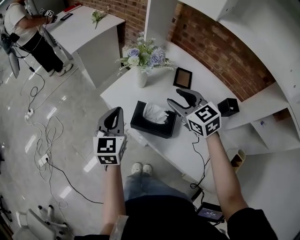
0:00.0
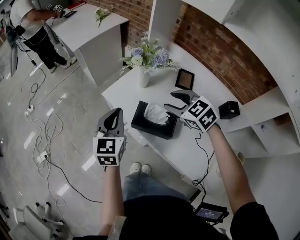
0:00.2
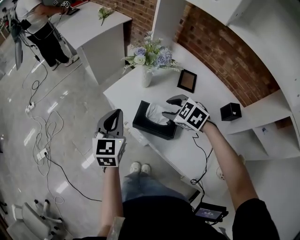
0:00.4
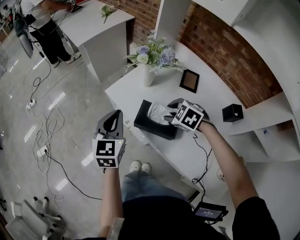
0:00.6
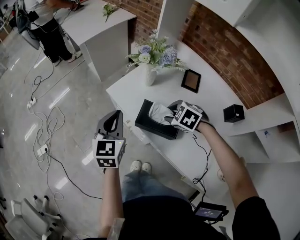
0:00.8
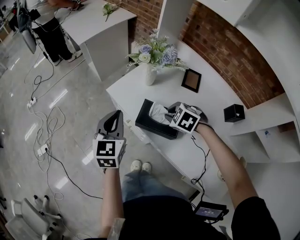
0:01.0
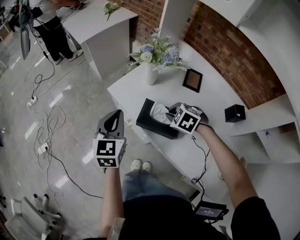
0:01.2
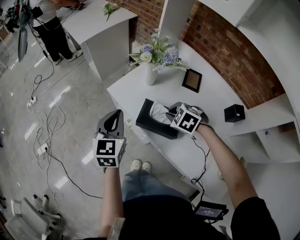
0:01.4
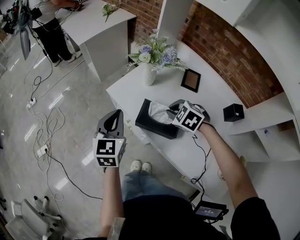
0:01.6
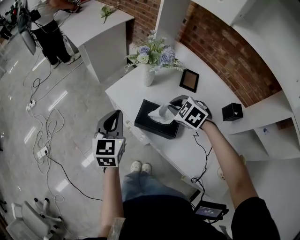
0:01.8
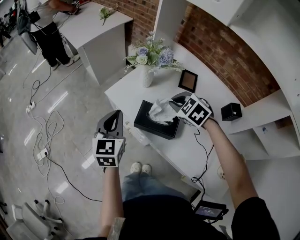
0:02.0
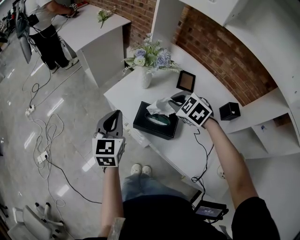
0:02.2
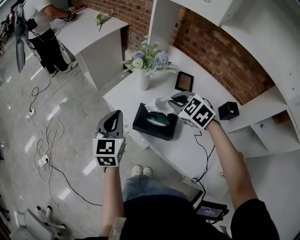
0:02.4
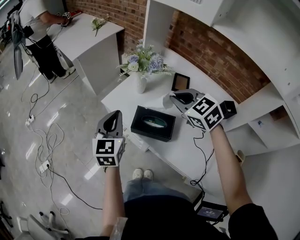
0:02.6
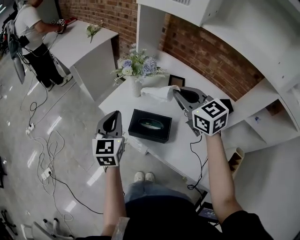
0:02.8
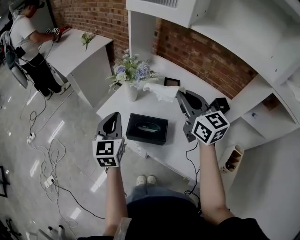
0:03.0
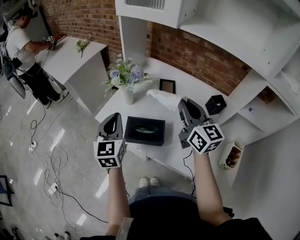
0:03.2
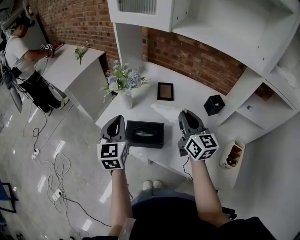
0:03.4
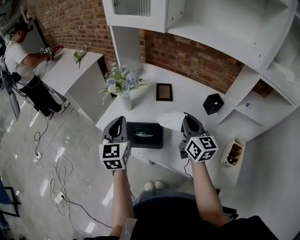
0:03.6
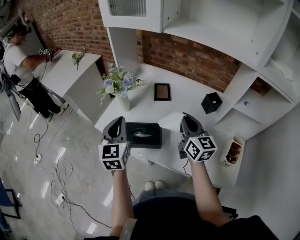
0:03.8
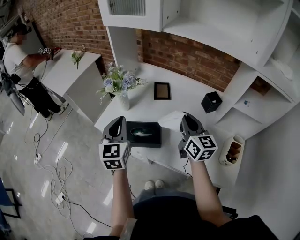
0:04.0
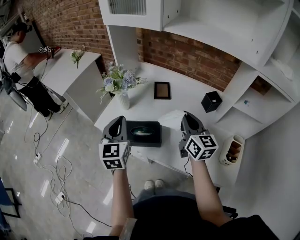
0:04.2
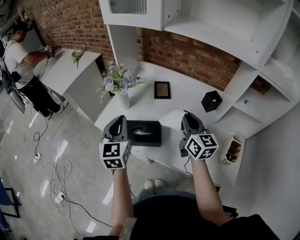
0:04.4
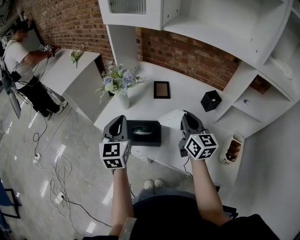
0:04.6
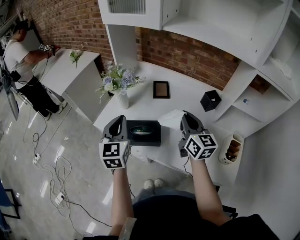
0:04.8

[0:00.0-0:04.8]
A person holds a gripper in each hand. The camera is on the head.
0:00.0 to 0:01.6: The right gripper is displaced downward by some 15 cm, tips its fingers downward by roughly 40 degrees, and closes up.
0:01.6 to 0:03.2: The left gripper travels to the right and upward by roughly 10 cm; the right gripper travels upward and to the right by about 25 cm, and points its fingers some 70 degrees further upward.
0:03.2 to 0:04.8: The right gripper moves downward, approximately 5 cm.

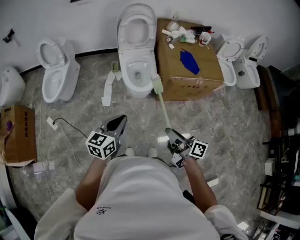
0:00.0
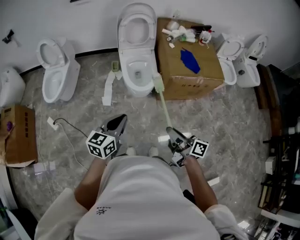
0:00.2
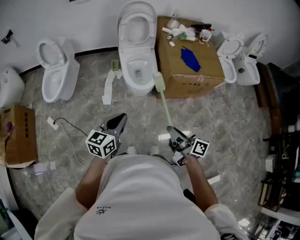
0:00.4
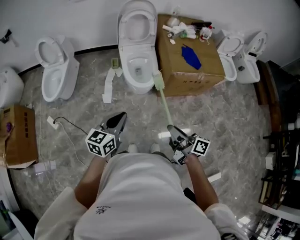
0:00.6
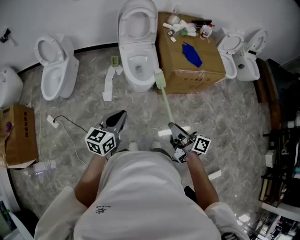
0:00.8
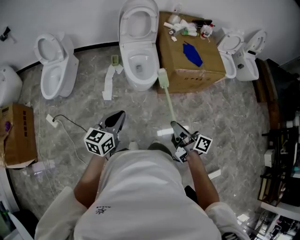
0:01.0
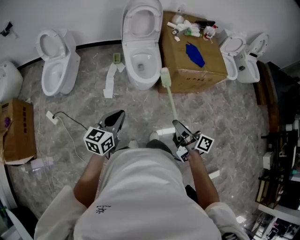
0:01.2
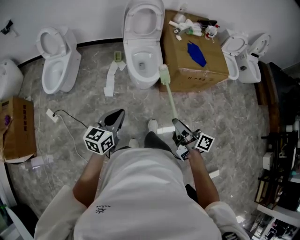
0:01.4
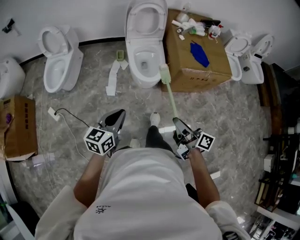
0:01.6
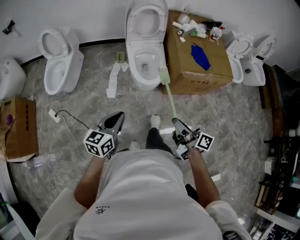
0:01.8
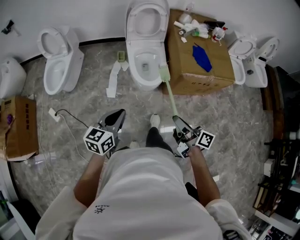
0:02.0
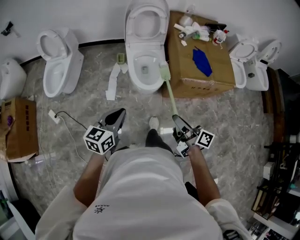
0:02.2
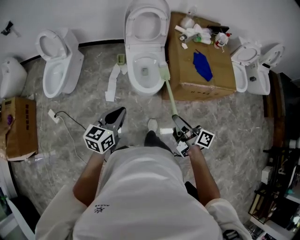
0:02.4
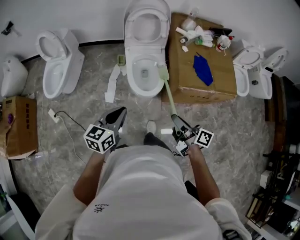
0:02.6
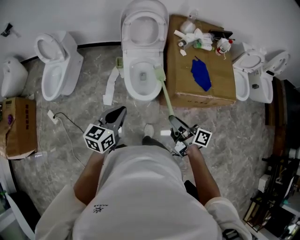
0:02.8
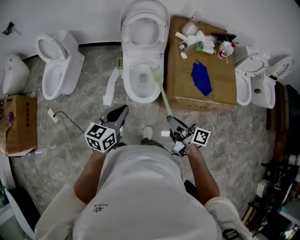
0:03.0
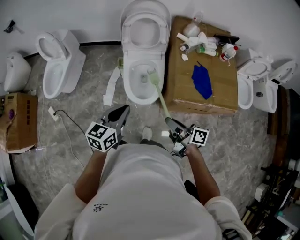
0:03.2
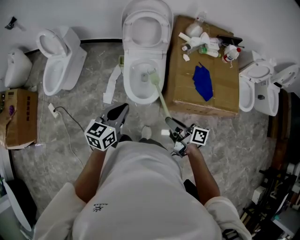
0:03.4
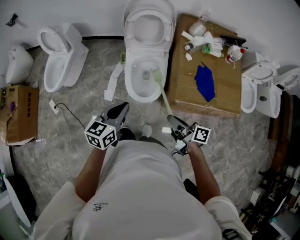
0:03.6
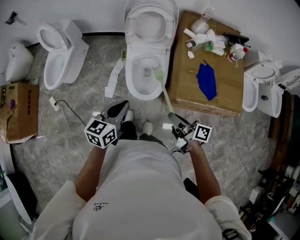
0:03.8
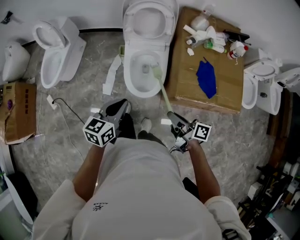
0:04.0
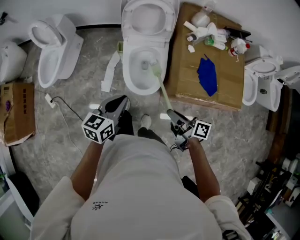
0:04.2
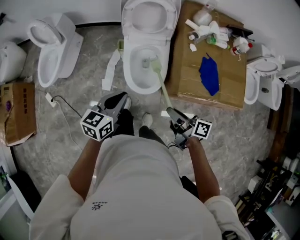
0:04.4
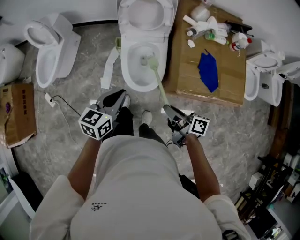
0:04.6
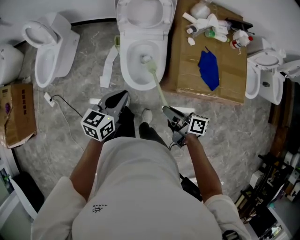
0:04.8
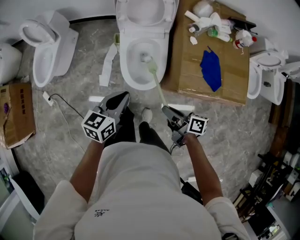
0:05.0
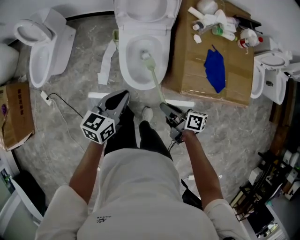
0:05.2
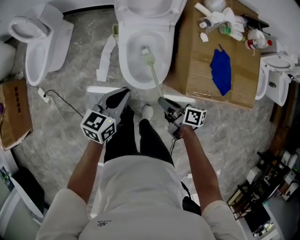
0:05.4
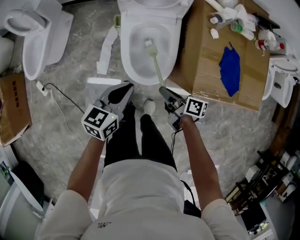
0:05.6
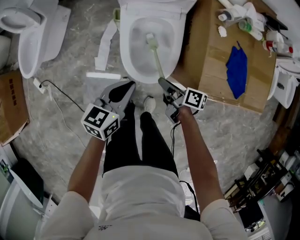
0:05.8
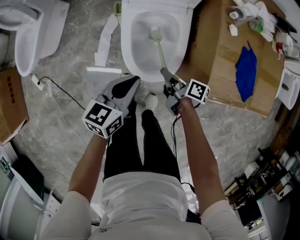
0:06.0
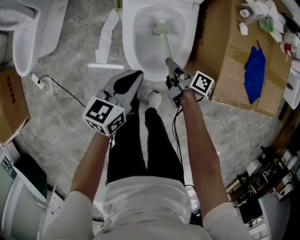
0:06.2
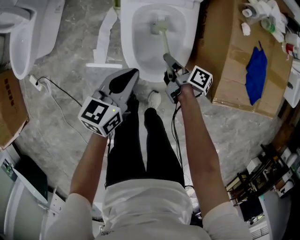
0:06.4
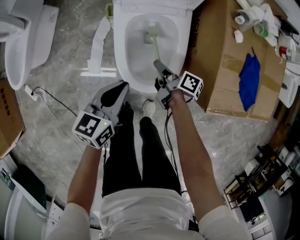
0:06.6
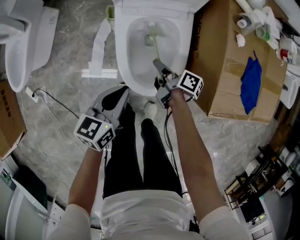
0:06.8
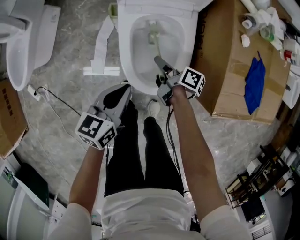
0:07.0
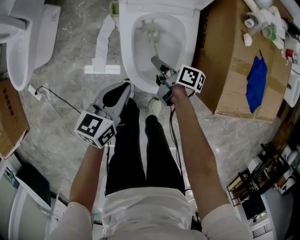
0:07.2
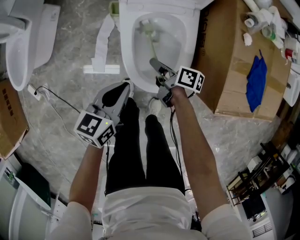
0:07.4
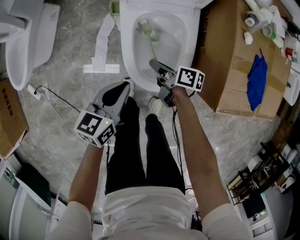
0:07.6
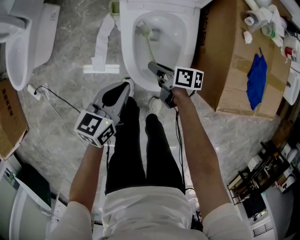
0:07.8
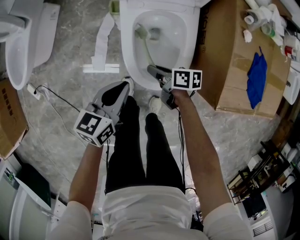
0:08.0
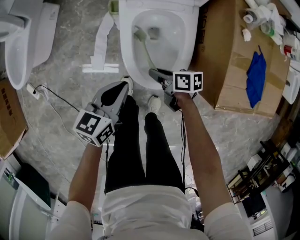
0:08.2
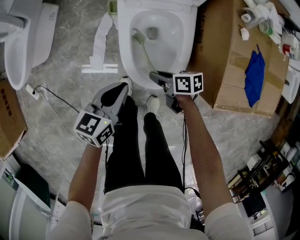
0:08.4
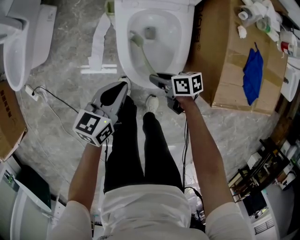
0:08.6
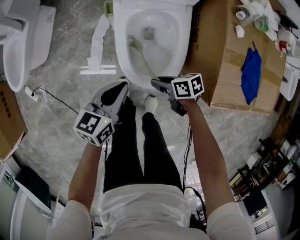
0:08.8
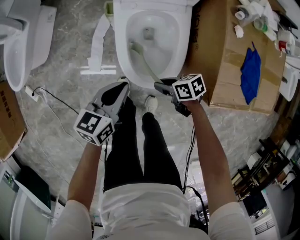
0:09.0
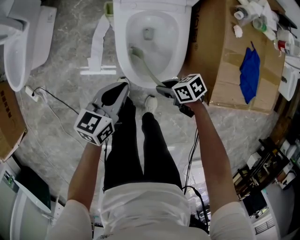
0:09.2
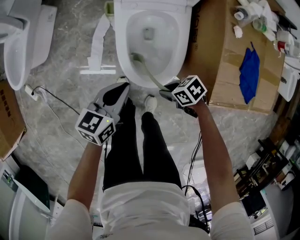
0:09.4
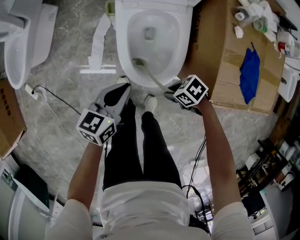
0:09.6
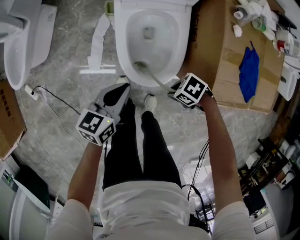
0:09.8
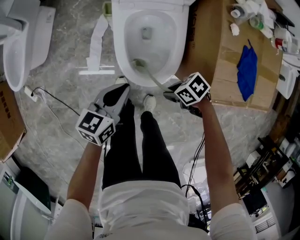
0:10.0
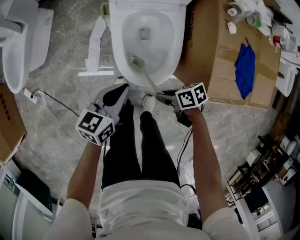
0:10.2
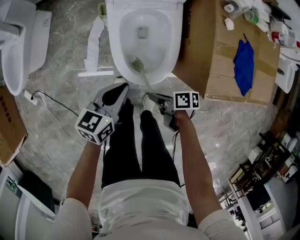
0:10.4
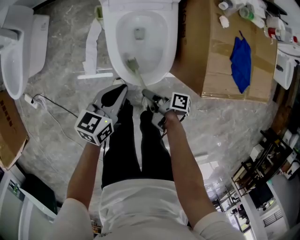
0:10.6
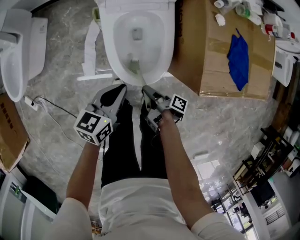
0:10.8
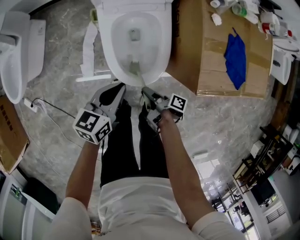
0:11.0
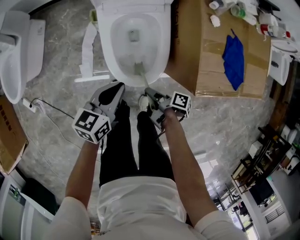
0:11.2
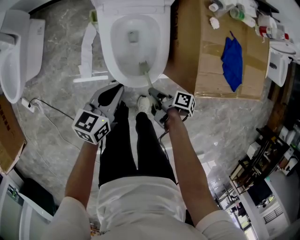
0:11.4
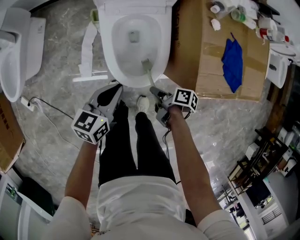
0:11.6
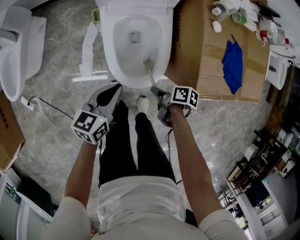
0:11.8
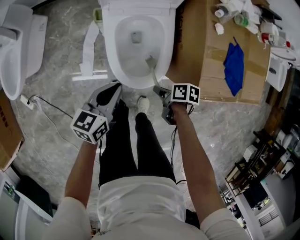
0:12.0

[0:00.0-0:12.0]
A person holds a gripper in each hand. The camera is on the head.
0:00.0 to 0:01.6: The left gripper shifts by roughly 10 cm.
0:01.6 to 0:03.0: The left gripper ends up about 30 cm from where it was.
0:03.0 to 0:04.4: The left gripper moves approximately 10 cm.
0:04.4 to 0:06.0: The left gripper goes approximately 20 cm downward.
0:06.0 to 0:07.6: The left gripper moves about 10 cm.

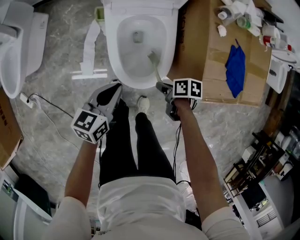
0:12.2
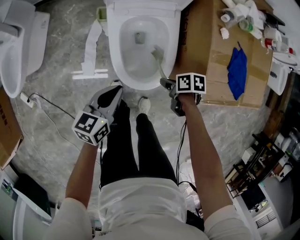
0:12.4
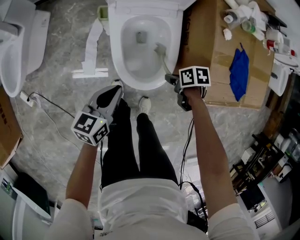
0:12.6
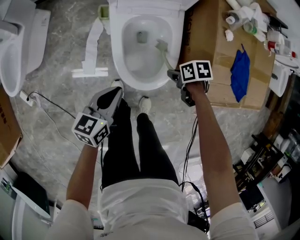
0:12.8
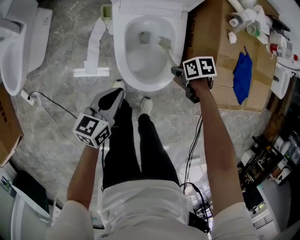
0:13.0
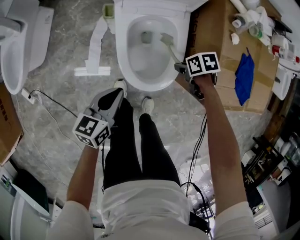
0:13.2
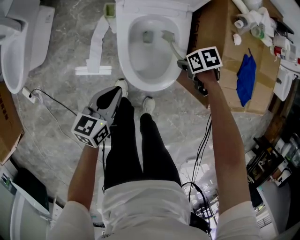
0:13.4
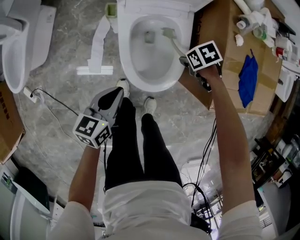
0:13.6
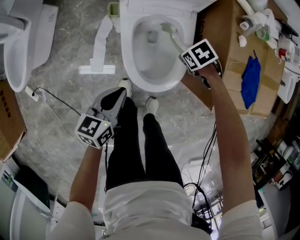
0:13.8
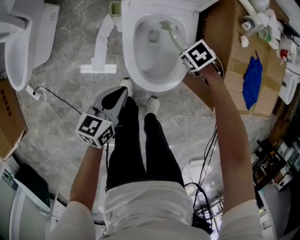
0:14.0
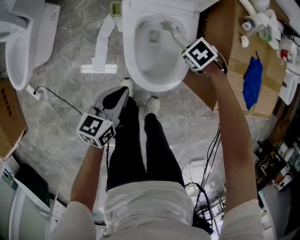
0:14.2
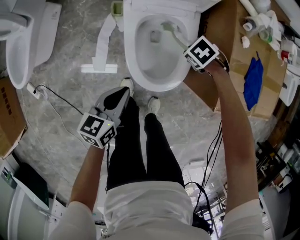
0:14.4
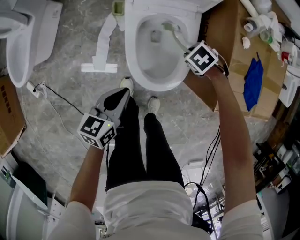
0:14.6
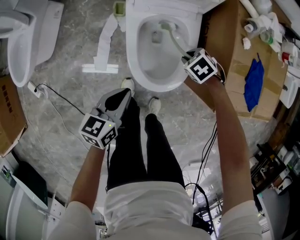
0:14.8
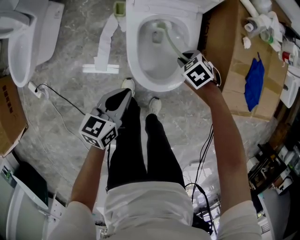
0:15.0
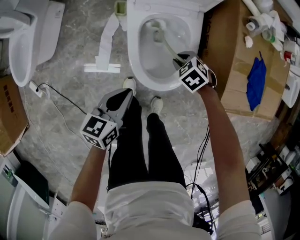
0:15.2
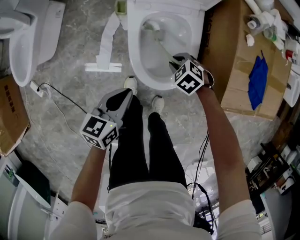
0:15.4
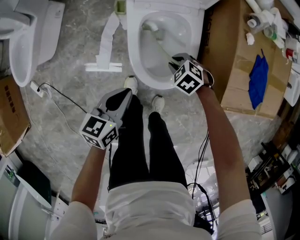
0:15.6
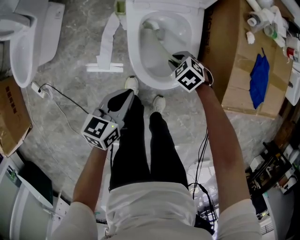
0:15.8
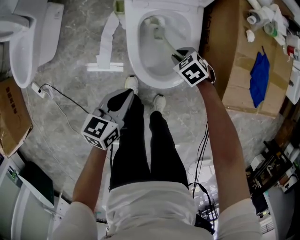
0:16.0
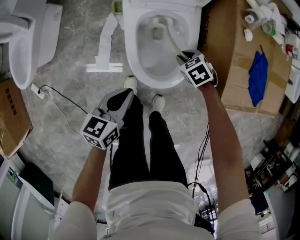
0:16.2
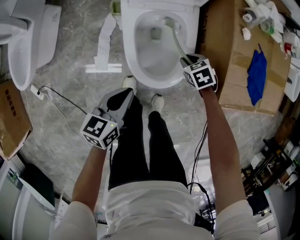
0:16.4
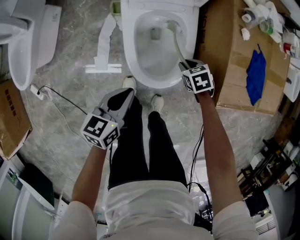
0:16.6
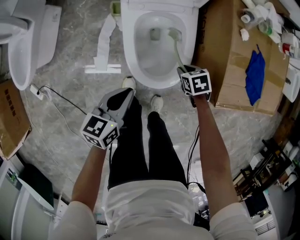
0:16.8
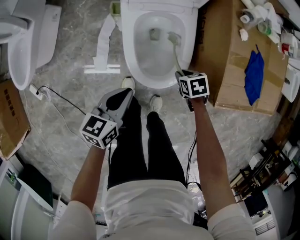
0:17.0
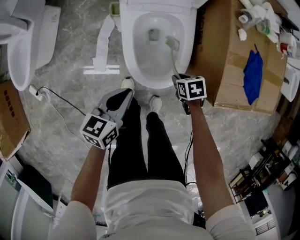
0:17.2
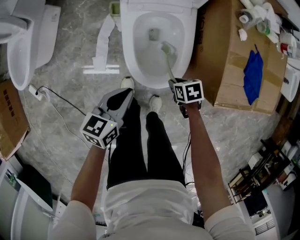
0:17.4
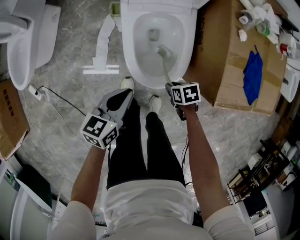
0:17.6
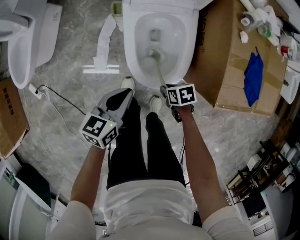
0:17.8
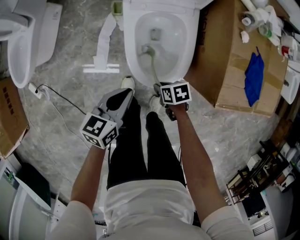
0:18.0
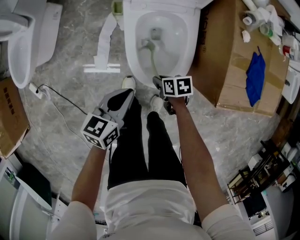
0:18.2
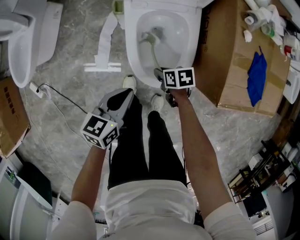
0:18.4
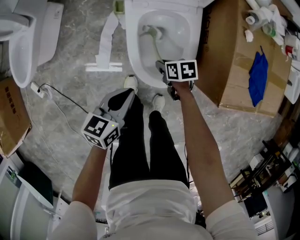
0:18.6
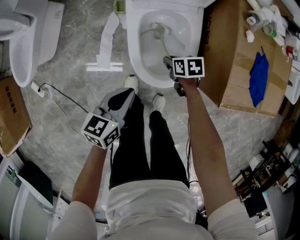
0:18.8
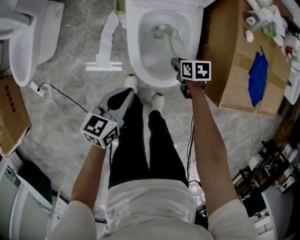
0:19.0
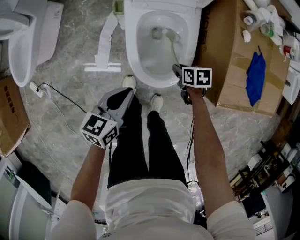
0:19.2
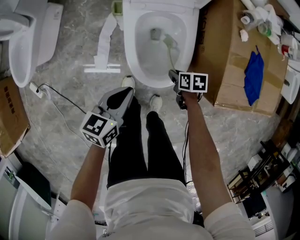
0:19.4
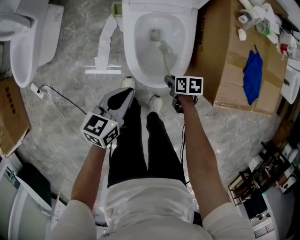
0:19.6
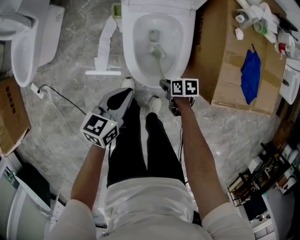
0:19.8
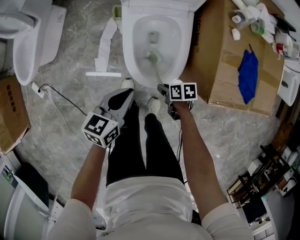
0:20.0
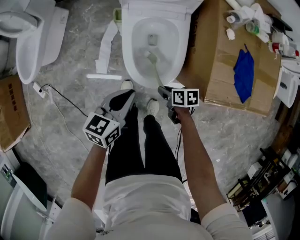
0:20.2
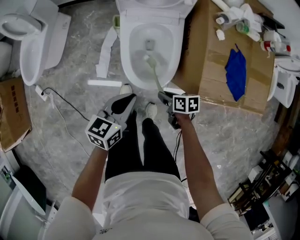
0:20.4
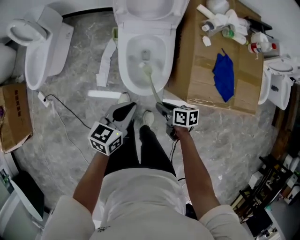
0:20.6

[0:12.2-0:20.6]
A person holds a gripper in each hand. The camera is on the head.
0:19.2 to 0:20.6: The left gripper heads upward, covering about 15 cm.
